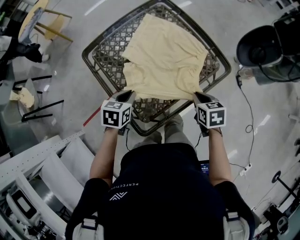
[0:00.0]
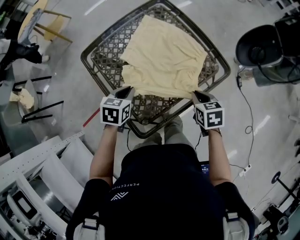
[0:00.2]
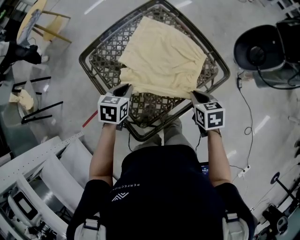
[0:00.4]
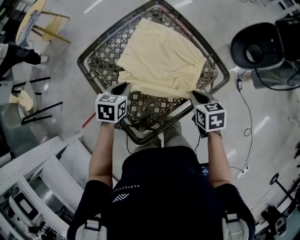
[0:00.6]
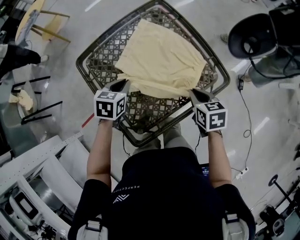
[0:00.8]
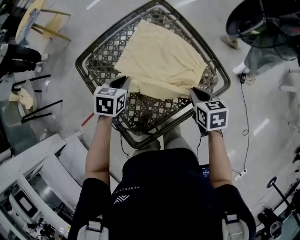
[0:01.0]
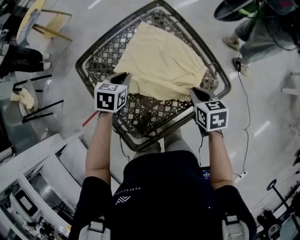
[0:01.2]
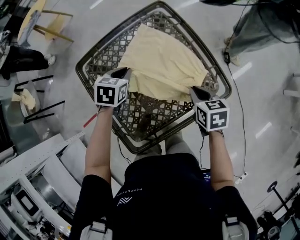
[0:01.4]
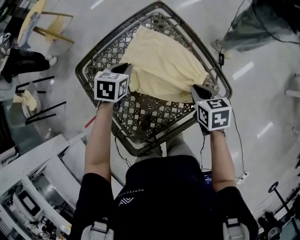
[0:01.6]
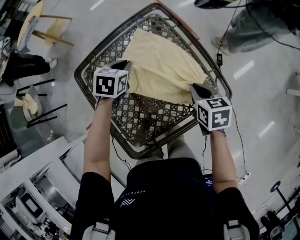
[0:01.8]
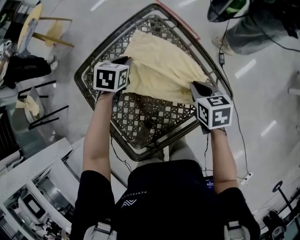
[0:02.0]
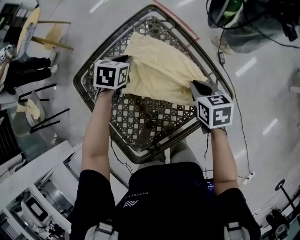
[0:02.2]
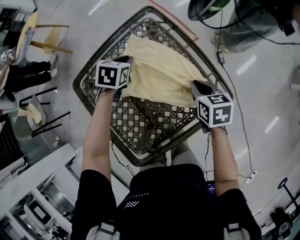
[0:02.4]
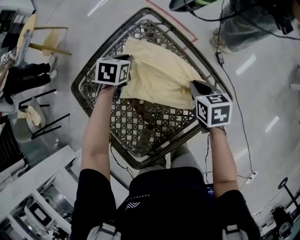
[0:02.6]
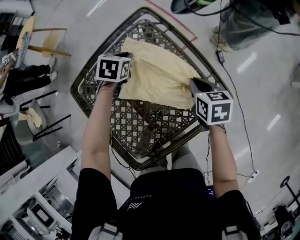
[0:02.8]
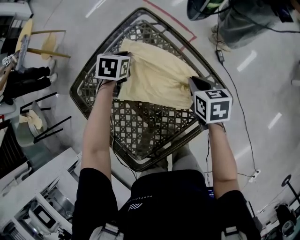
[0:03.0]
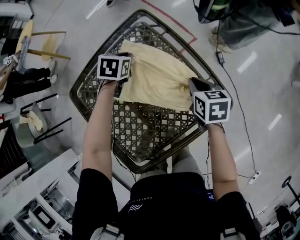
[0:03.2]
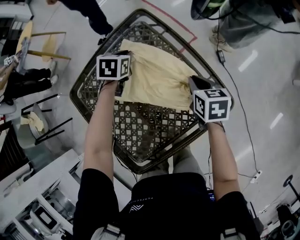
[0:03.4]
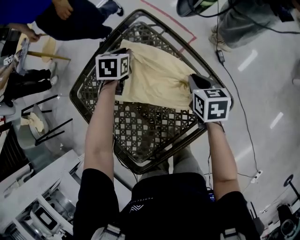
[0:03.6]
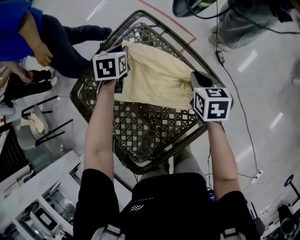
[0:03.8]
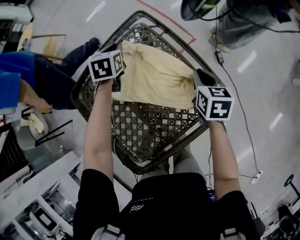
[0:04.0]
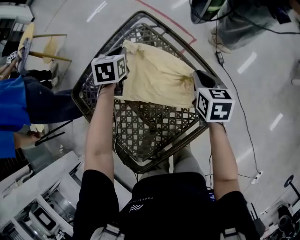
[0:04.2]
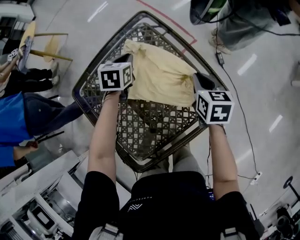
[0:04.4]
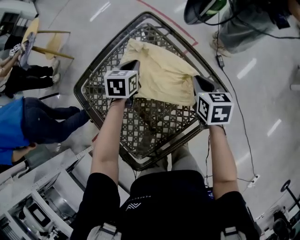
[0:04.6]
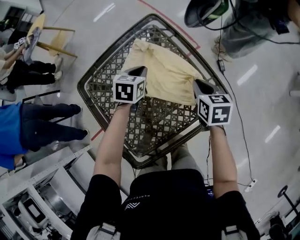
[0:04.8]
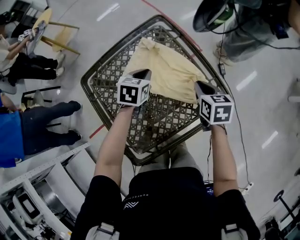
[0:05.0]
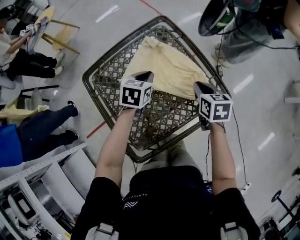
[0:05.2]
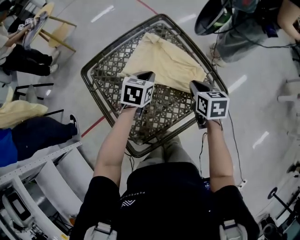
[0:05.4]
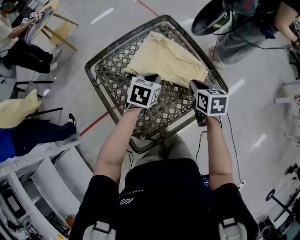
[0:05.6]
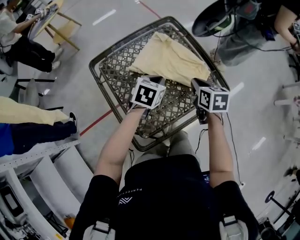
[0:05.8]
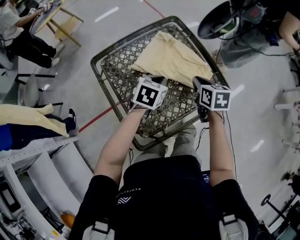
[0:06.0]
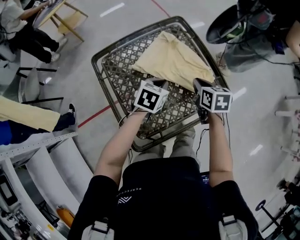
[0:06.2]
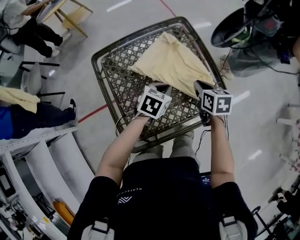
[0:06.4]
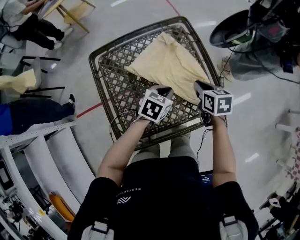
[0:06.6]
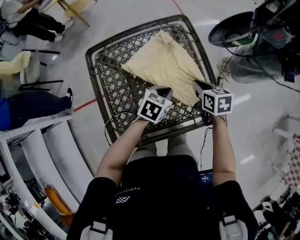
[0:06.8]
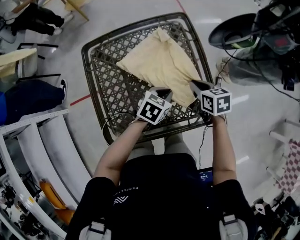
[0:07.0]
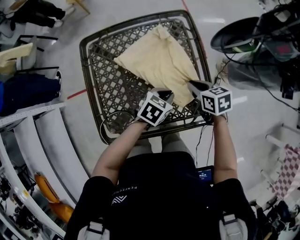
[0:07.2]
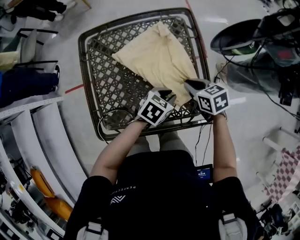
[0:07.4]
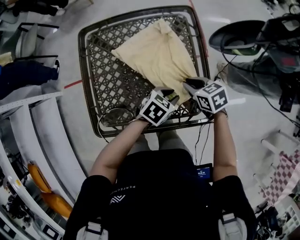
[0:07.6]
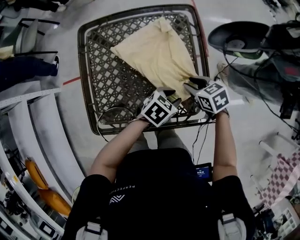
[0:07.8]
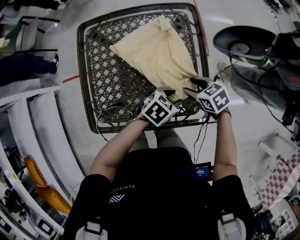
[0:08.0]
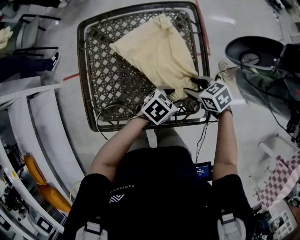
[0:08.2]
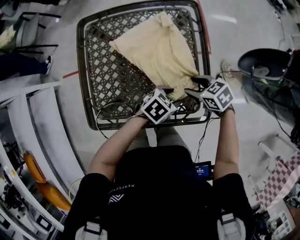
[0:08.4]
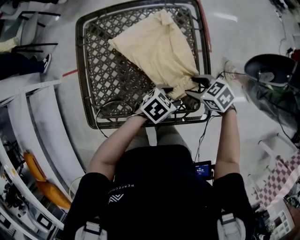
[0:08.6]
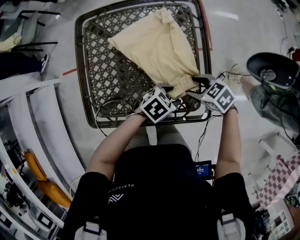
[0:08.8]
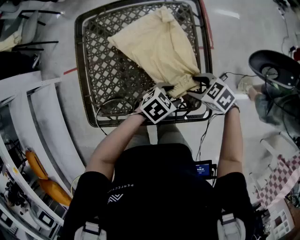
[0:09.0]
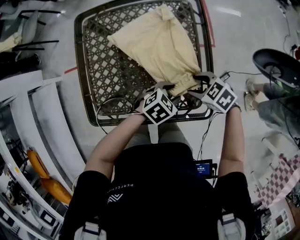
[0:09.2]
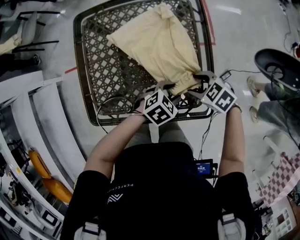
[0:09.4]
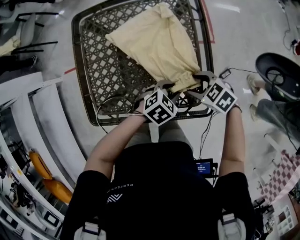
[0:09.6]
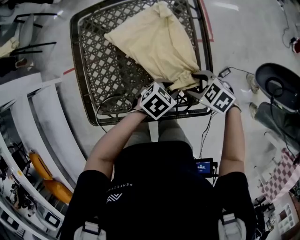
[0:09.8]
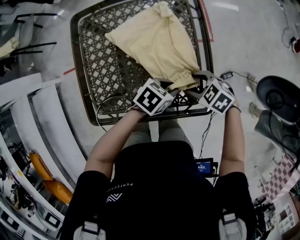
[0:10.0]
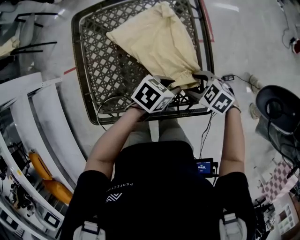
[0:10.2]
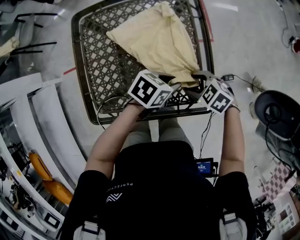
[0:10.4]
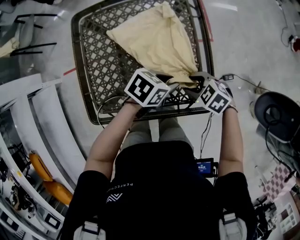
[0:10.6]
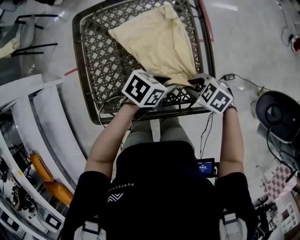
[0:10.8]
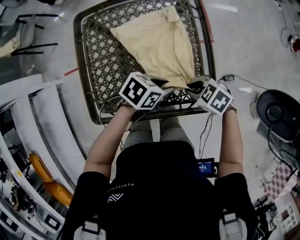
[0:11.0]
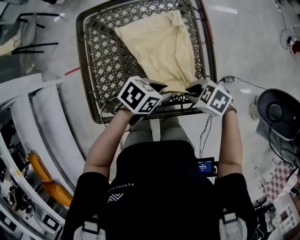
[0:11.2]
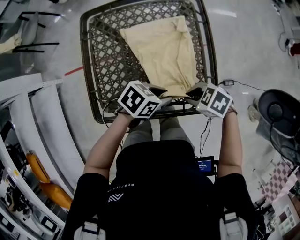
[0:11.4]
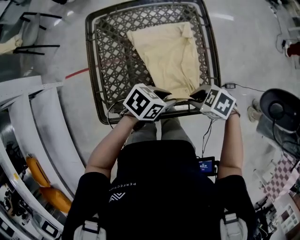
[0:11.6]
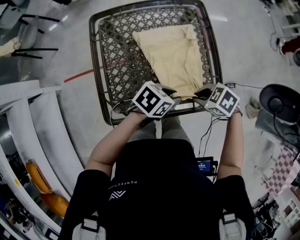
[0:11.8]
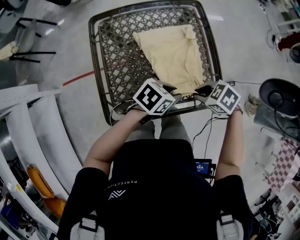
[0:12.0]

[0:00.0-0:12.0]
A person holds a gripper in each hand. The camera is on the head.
0:00.0 to 0:01.6: Both grippers move forward, approximately 15 cm.
0:01.6 to 0:03.0: The left gripper heads forward, to the right and downward, covering roughly 15 cm; the right gripper travels forward by approximately 10 cm.
0:04.4 to 0:06.0: The right gripper goes approximately 15 cm to the left, backward and upward. Meanwhile the left gripper moves backward, some 20 cm.
0:06.0 to 0:07.6: The left gripper moves about 15 cm, and opens. The right gripper heads downward, covering approximately 10 cm, and rotates about 50 degrees.
0:07.6 to 0:09.0: The left gripper shifts by some 5 cm, and opens. The right gripper changes place by approximately 5 cm, changes its angle by some 30 degrees, and opens its fingers.
0:09.0 to 0:10.4: The left gripper moves approximately 5 cm, and closes up.
0:10.4 to 0:12.0: The left gripper shifts by about 10 cm. The right gripper changes place by some 10 cm, and closes up.

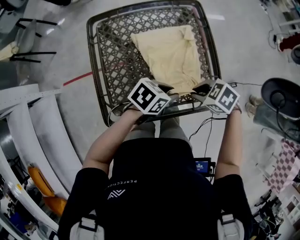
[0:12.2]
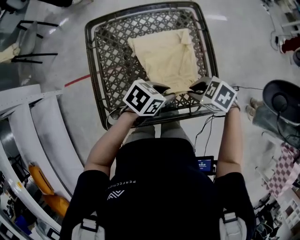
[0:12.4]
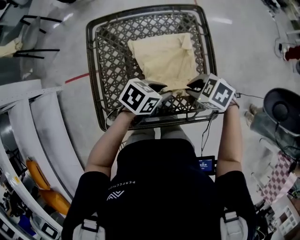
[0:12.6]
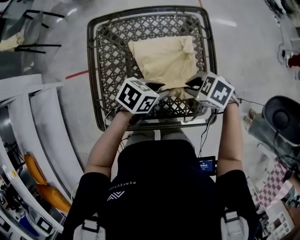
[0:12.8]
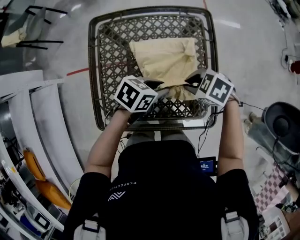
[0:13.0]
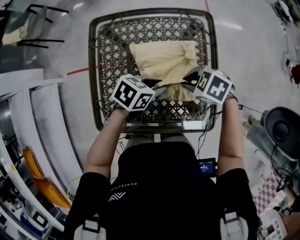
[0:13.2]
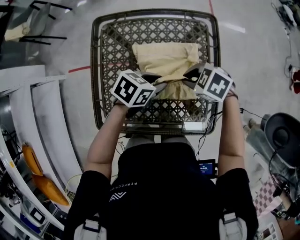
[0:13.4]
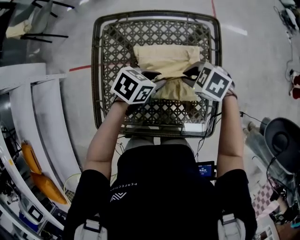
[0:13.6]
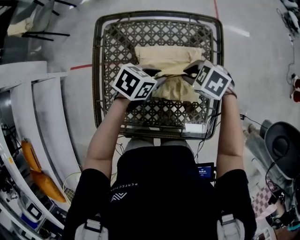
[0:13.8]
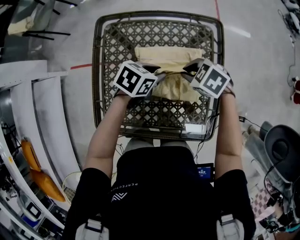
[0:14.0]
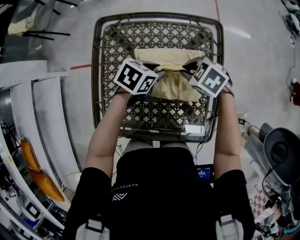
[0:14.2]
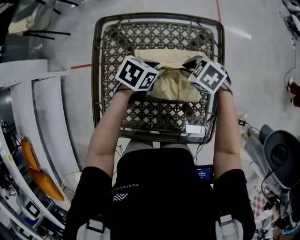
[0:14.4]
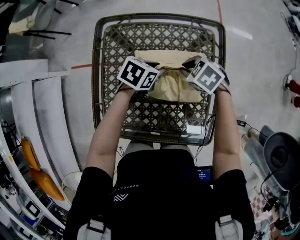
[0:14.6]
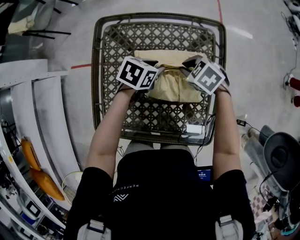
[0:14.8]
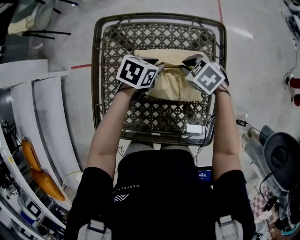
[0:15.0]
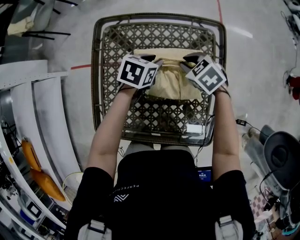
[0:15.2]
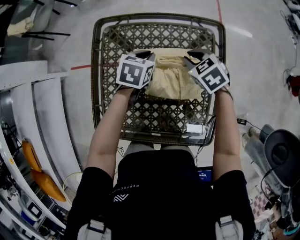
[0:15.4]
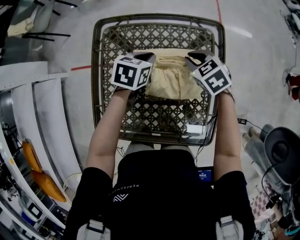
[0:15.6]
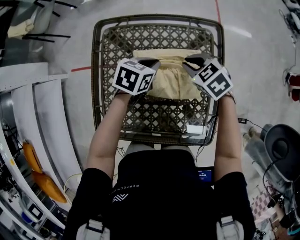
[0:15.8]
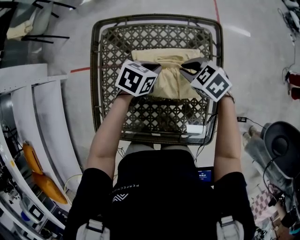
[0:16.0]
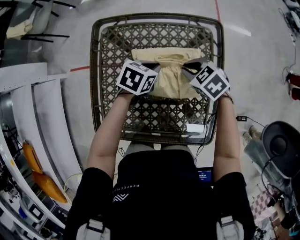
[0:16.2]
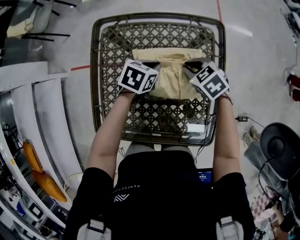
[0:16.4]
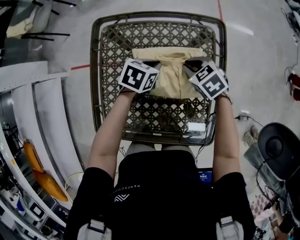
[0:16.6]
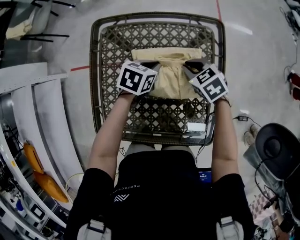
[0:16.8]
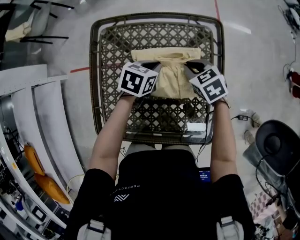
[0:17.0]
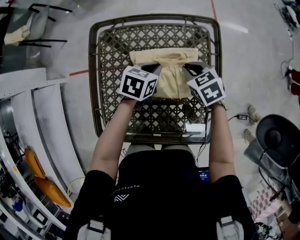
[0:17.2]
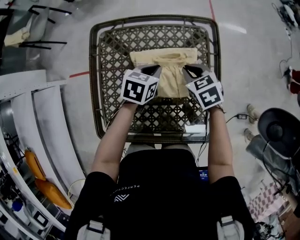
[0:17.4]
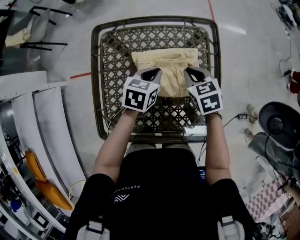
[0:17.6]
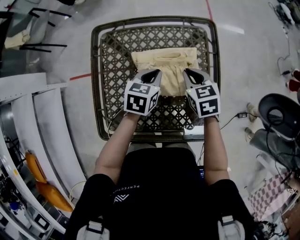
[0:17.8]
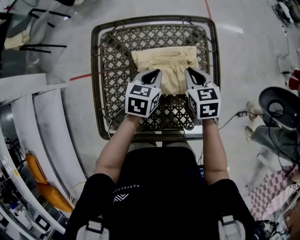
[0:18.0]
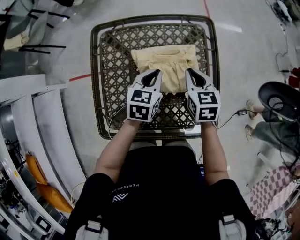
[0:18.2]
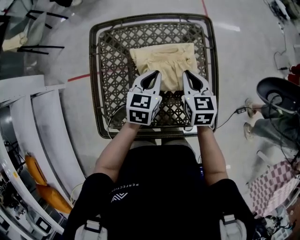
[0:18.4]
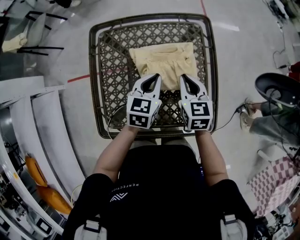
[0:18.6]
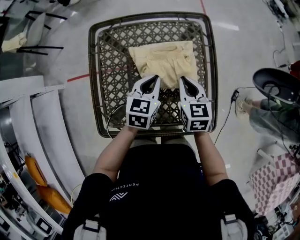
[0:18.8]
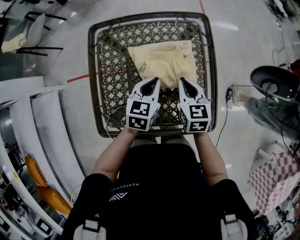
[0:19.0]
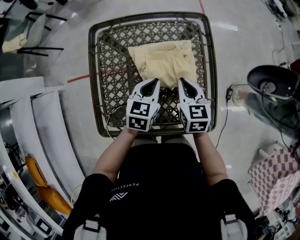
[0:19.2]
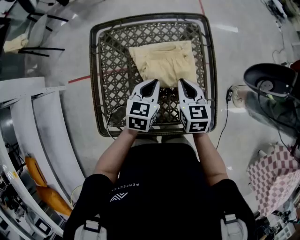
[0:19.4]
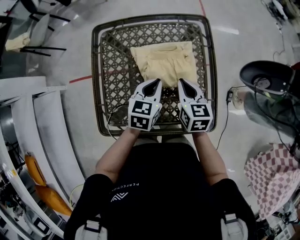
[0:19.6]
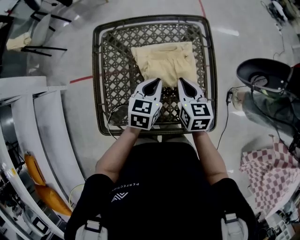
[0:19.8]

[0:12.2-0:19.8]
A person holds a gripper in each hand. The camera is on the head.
0:12.2 to 0:13.8: The right gripper shifts by roughly 20 cm, and changes its angle by roughly 20 degrees. Meanwhile the left gripper shifts by some 20 cm, and swivels approximately 20 degrees.
0:13.8 to 0:15.2: The right gripper moves approximately 10 cm. Meanwhile the left gripper changes place by about 10 cm.
0:15.2 to 0:16.8: The left gripper closes.
0:16.8 to 0:18.2: The left gripper moves upward and backward, about 10 cm, and changes its angle by some 20 degrees. The right gripper moves upward, some 5 cm, and rotates approximately 40 degrees.
0:18.2 to 0:19.8: Both grippers travel together backward, some 5 cm.

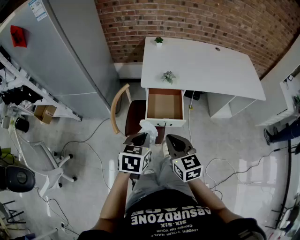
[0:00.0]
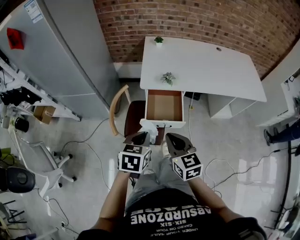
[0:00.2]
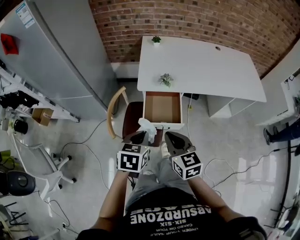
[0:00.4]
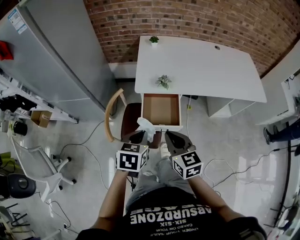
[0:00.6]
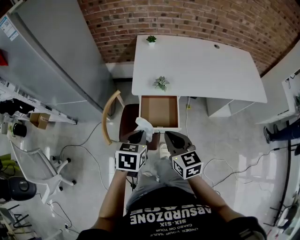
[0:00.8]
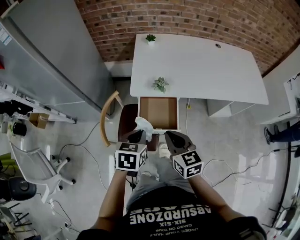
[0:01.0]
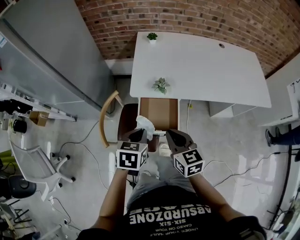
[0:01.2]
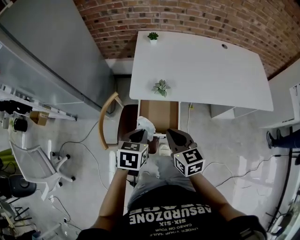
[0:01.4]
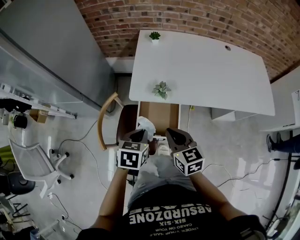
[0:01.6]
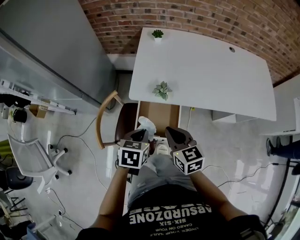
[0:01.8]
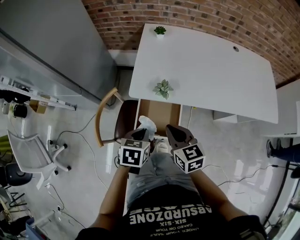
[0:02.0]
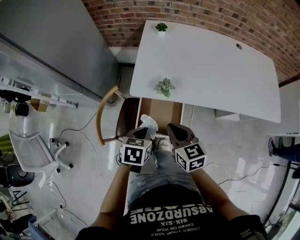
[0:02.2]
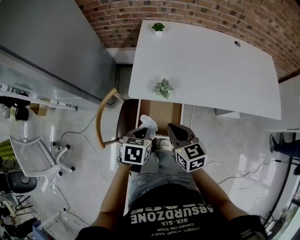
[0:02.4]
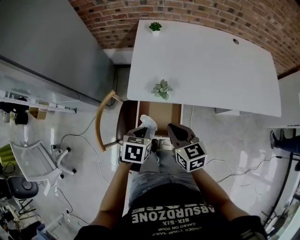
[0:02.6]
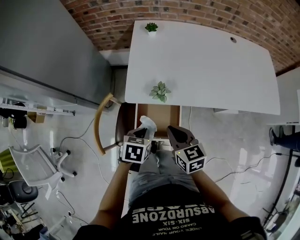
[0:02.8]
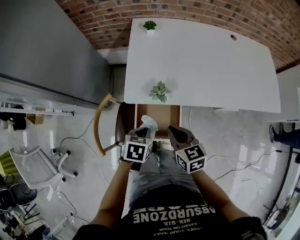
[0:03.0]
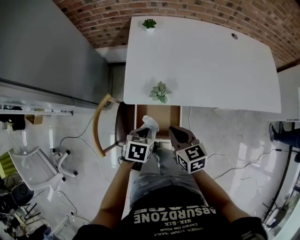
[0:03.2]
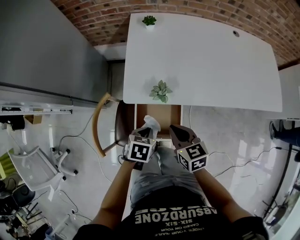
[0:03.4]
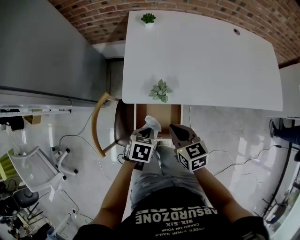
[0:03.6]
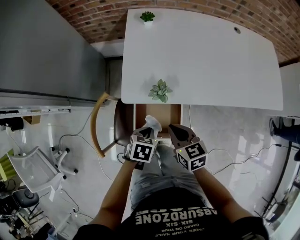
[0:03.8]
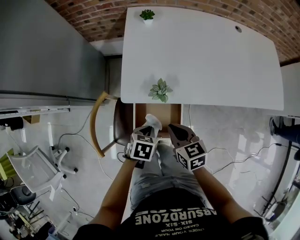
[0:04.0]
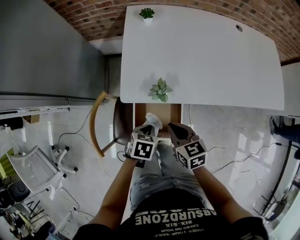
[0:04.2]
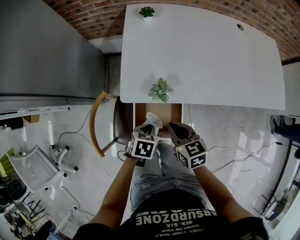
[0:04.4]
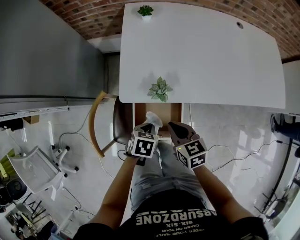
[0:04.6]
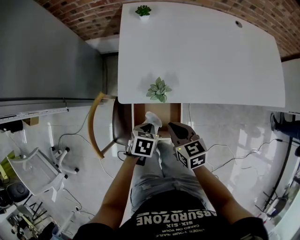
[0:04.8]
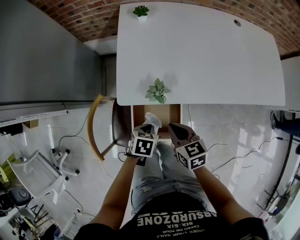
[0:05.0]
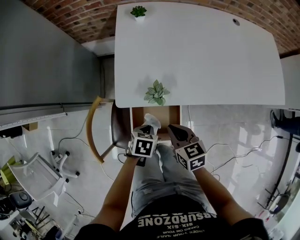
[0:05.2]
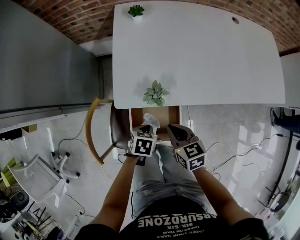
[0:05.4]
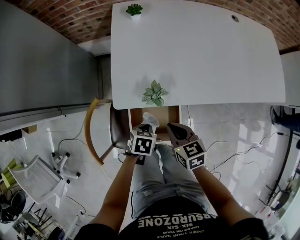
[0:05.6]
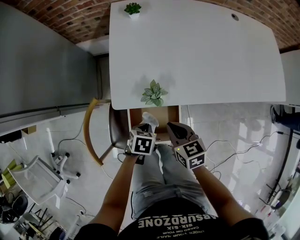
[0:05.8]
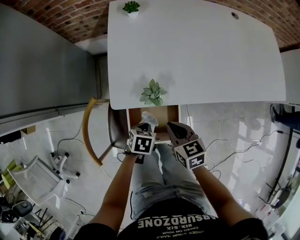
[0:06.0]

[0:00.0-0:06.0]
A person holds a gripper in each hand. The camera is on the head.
0:00.0 to 0:01.6: Both grippers move forward, approximately 20 cm.
0:01.6 to 0:03.0: The left gripper travels downward and forward by about 10 cm; the right gripper moves forward and downward, roughly 10 cm.
0:03.0 to 0:04.4: The grippers both shift downward by about 5 cm.
0:04.4 to 0:06.0: The left gripper goes approximately 5 cm downward.
